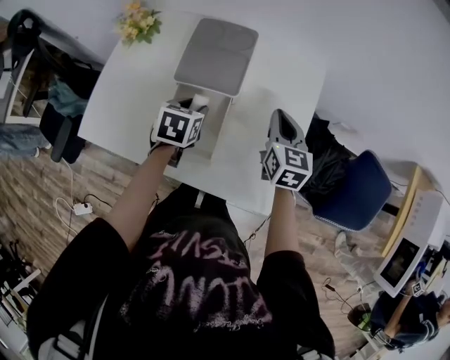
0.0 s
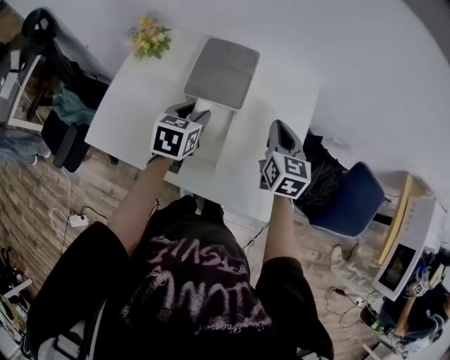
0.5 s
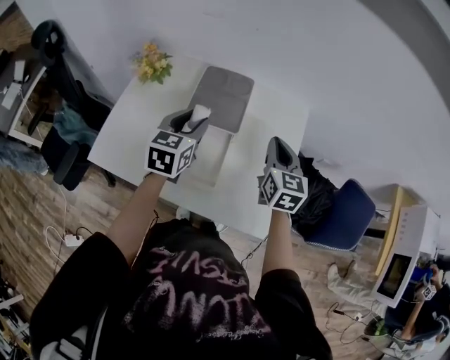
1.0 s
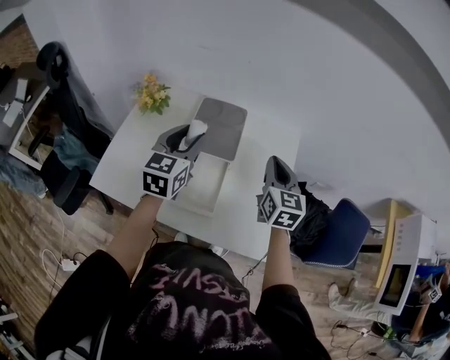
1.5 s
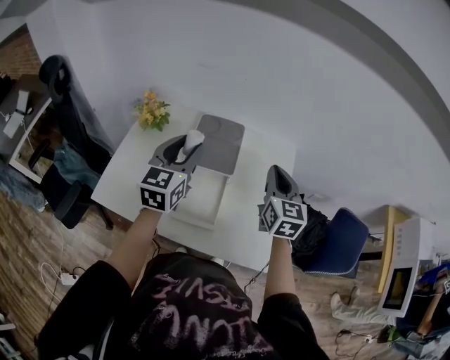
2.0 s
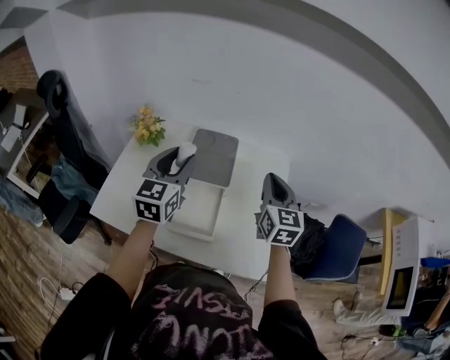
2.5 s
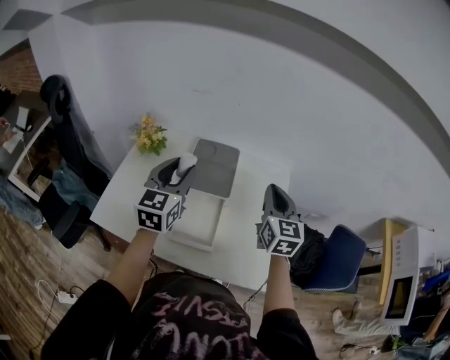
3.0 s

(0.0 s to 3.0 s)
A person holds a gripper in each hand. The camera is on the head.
0.0 s - 1.5 s: The left gripper shifts some 20 cm upward, and tips its fingers upward by approximately 40 degrees. Meanwhile the right gripper heads upward, covering some 10 cm.
1.5 s - 3.0 s: The grippers stay close to where they were, moving slightly.

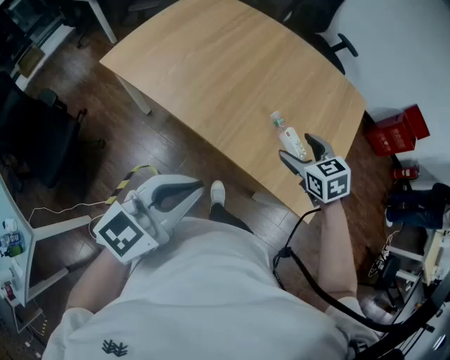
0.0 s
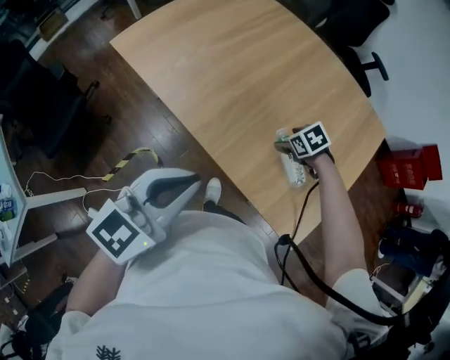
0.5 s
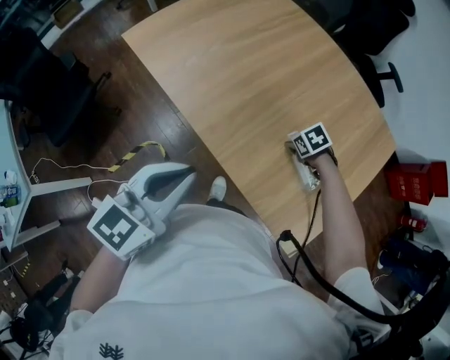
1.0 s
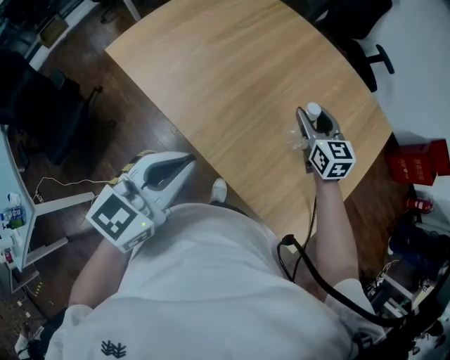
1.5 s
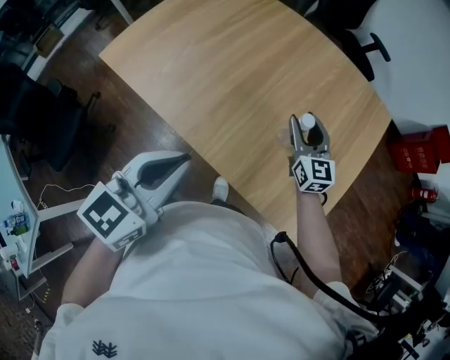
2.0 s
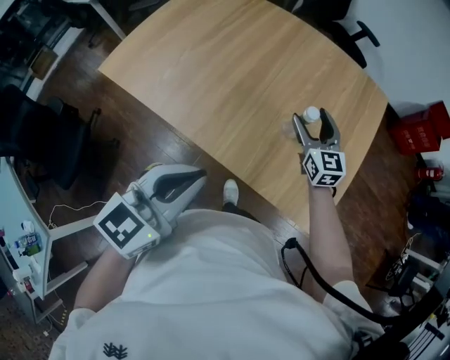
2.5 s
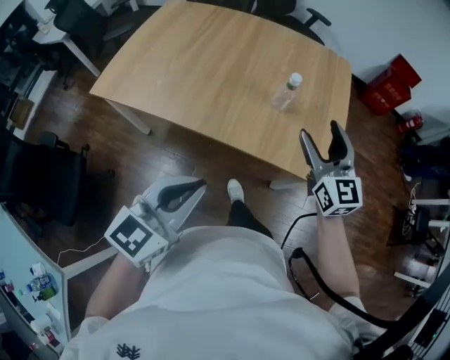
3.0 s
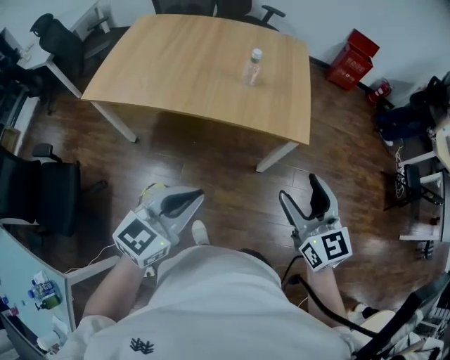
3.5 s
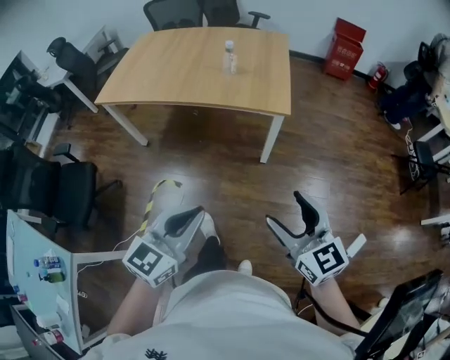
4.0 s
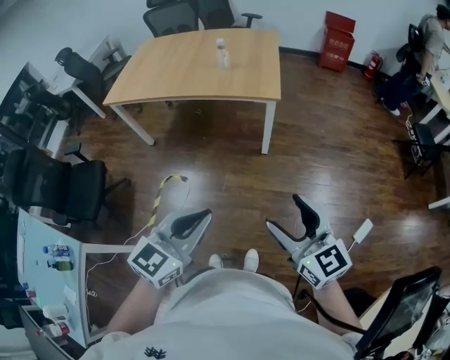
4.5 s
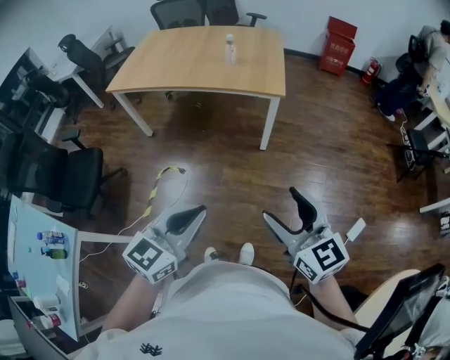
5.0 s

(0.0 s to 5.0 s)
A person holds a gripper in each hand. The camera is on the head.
0.0 s - 2.5 s: The right gripper moves some 20 cm downward and comes back, angles its fingers upward, by about 30 degrees, and closes, then reopens.
2.5 s - 5.0 s: The pair of grippers is taken backward, roughly 60 cm.

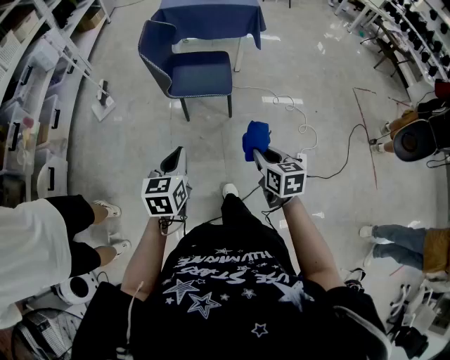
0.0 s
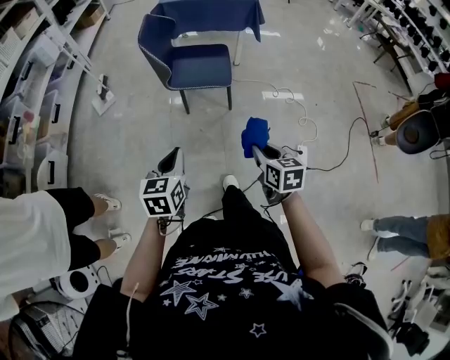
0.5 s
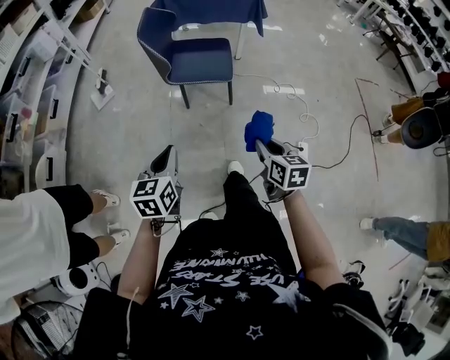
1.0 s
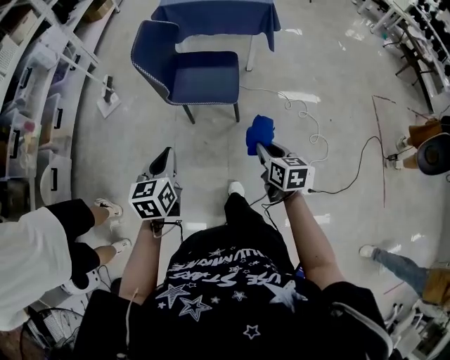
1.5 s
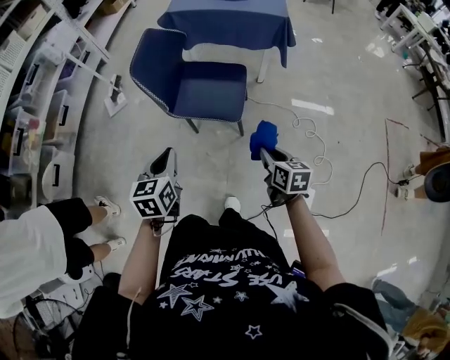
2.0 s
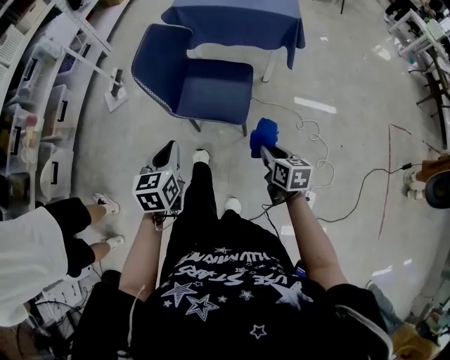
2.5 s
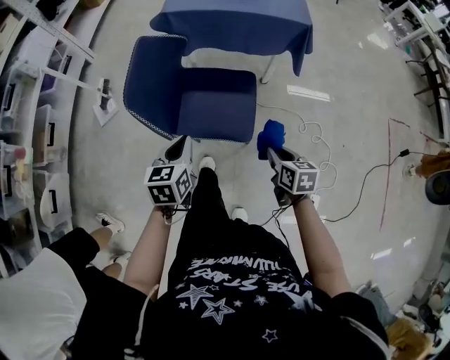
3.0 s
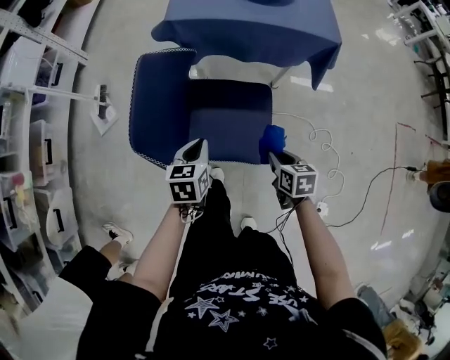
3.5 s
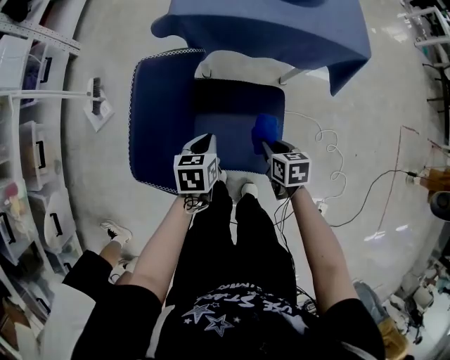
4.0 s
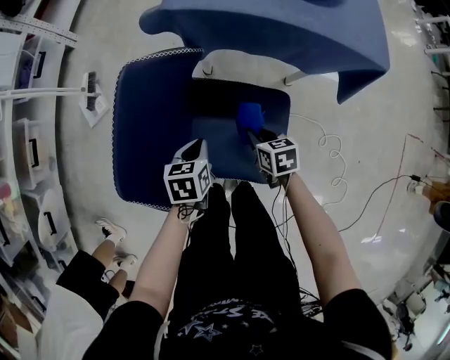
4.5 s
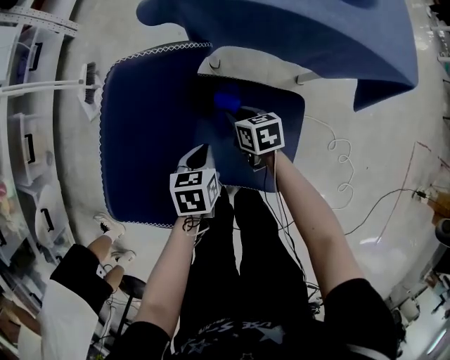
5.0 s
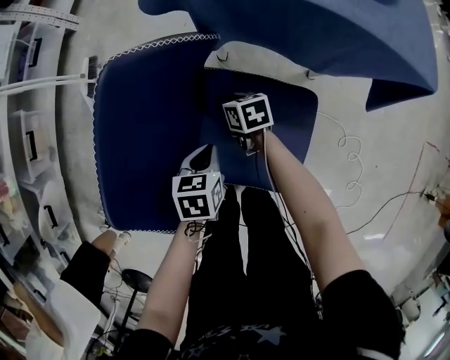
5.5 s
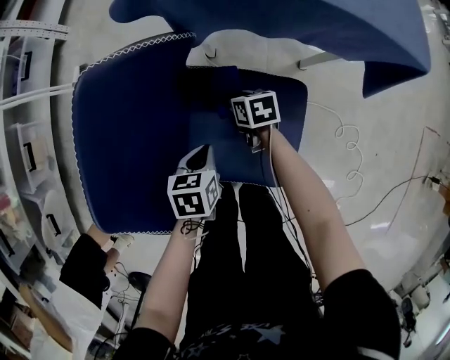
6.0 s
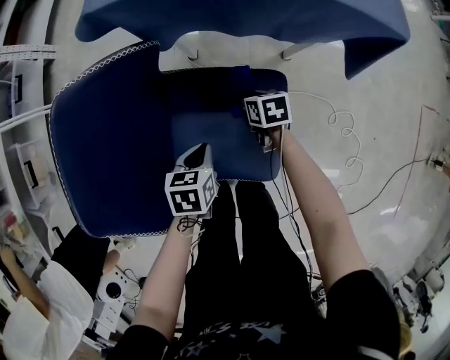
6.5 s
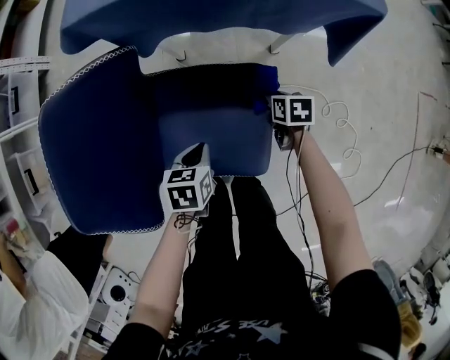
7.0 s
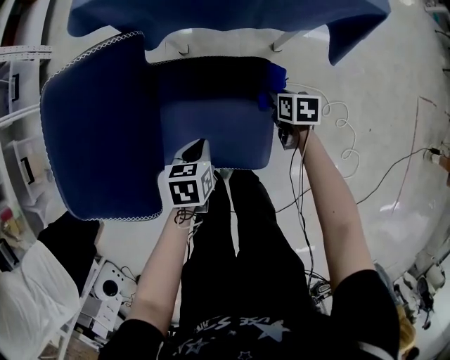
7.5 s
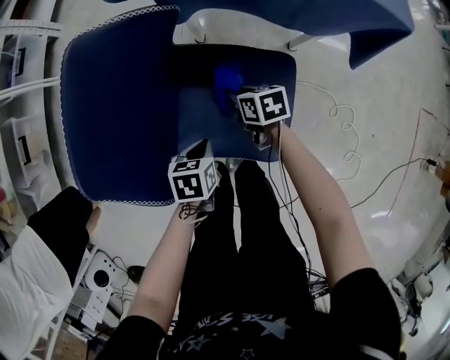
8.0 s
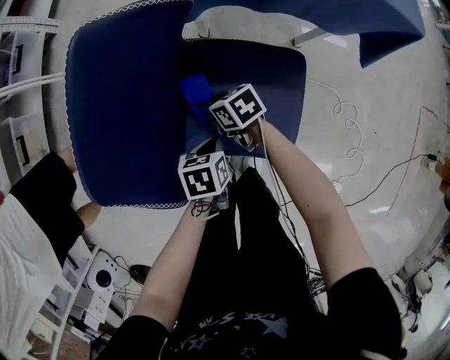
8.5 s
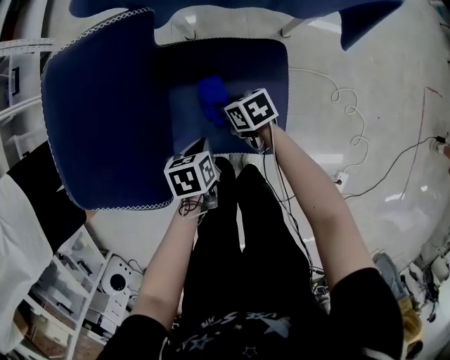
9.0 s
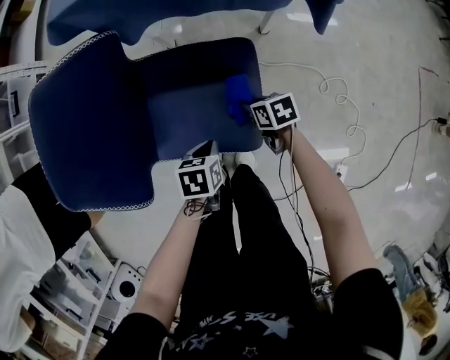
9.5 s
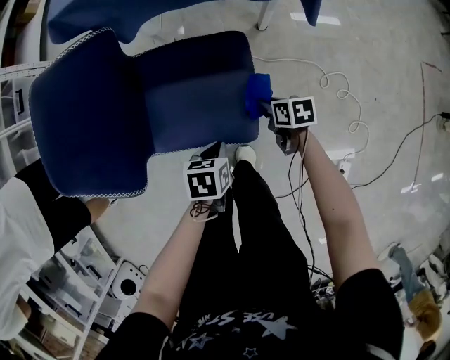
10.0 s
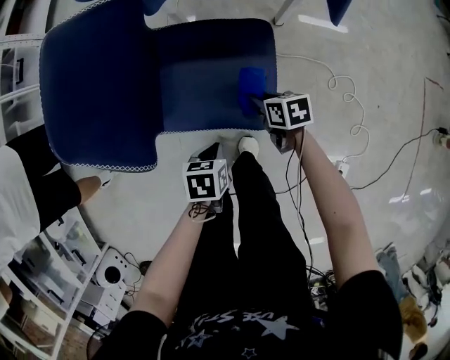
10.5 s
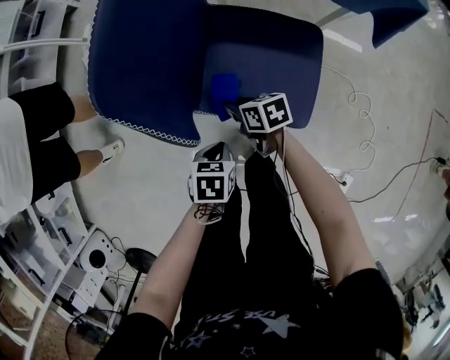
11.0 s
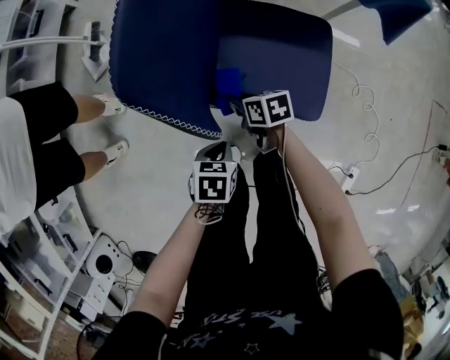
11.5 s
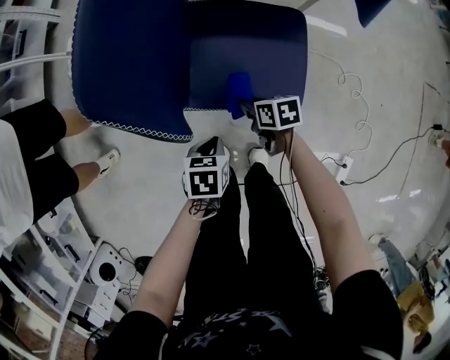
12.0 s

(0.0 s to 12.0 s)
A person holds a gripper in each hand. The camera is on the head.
0.0 s - 2.0 s: The left gripper heads forward, covering roughly 25 cm. The right gripper heads forward and to the right, covering about 30 cm.
2.0 s - 4.0 s: The two grippers travel together, forward, approximately 40 cm. Both grippers travel together downward, approximately 20 cm. The left gripper rotates about 30 degrees. The right gripper rotates approximately 20 degrees.
4.0 s - 6.0 s: The left gripper shifts approximately 10 cm downward, while the right gripper travels forward and downward by roughly 25 cm.
6.0 s - 8.0 s: The two grippers go about 10 cm backward. The right gripper moves about 25 cm to the right and comes back; the left gripper moves approximately 10 cm to the right and comes back.
8.0 s - 10.0 s: The right gripper goes approximately 25 cm to the right and backward, while the left gripper shifts approximately 15 cm to the right and backward.
10.0 s - 12.0 s: The two grippers go some 25 cm to the left.

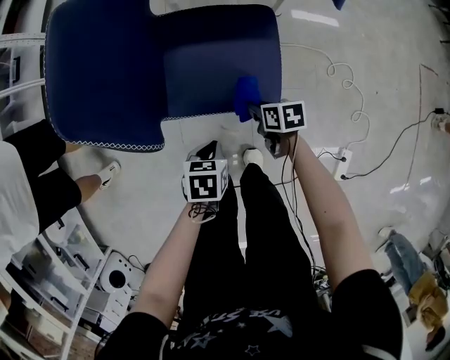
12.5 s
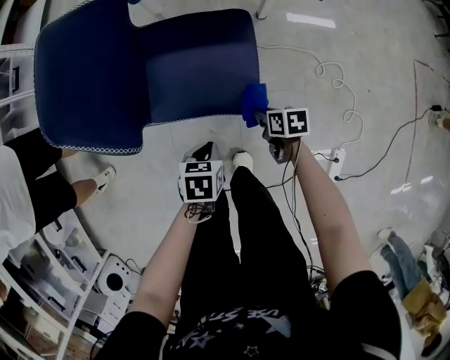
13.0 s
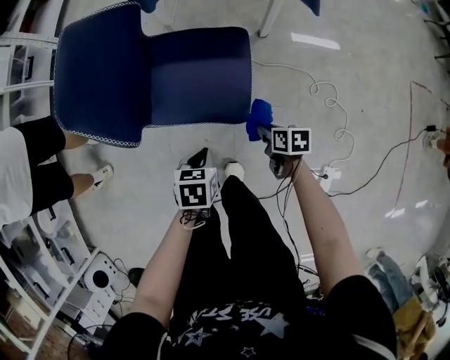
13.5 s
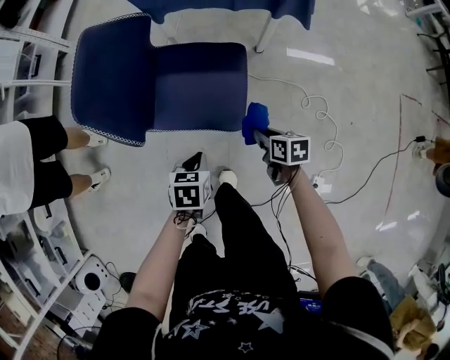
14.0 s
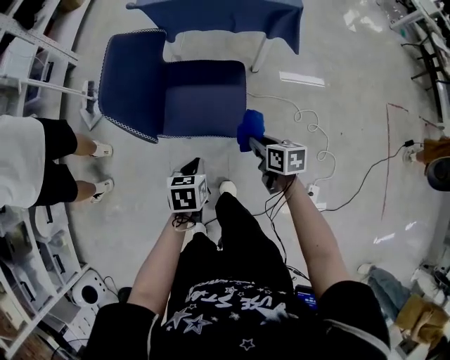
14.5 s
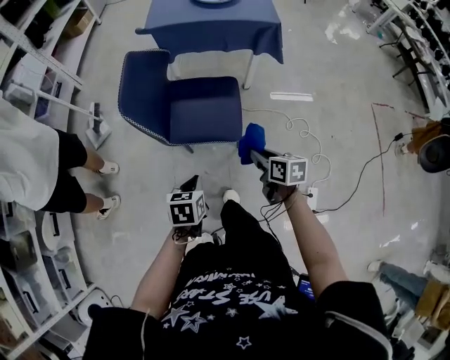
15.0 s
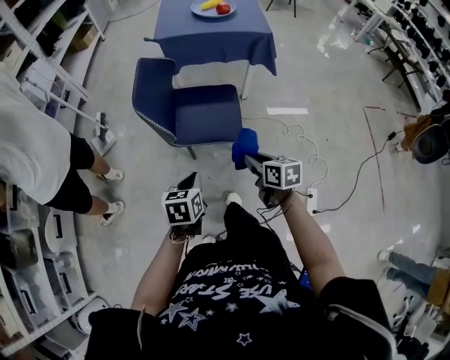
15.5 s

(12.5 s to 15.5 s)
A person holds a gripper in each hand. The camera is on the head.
12.5 s - 14.0 s: Both grippers move upward and to the right, roughly 15 cm.
14.0 s - 15.5 s: Both grippers travel together upward, backward and to the left, approximately 30 cm.

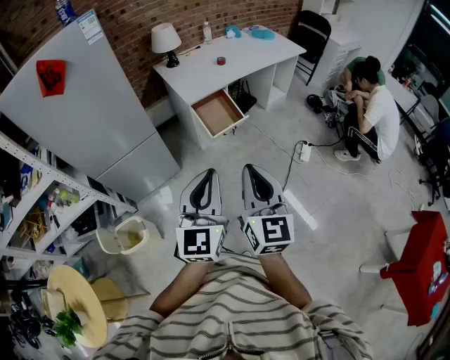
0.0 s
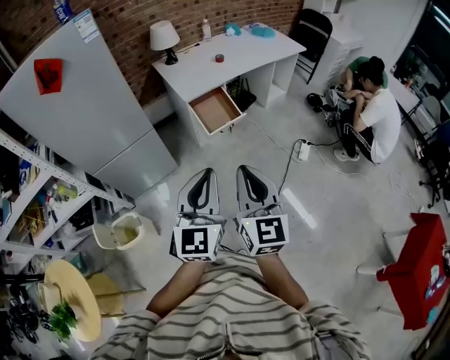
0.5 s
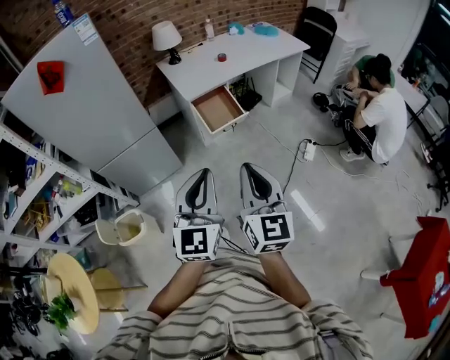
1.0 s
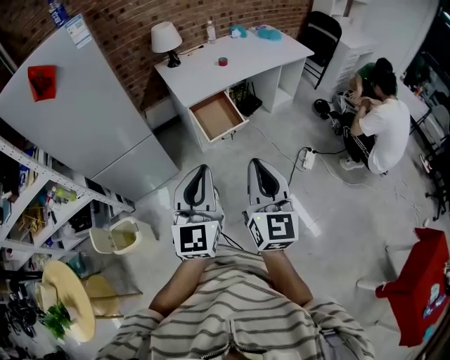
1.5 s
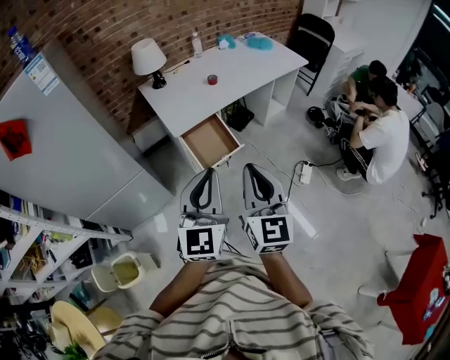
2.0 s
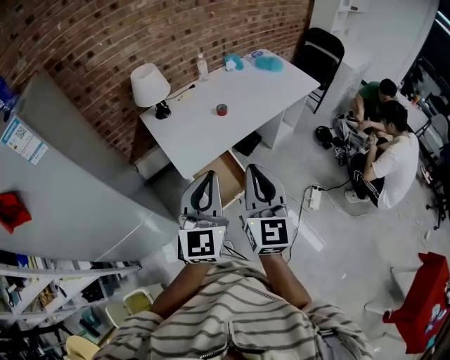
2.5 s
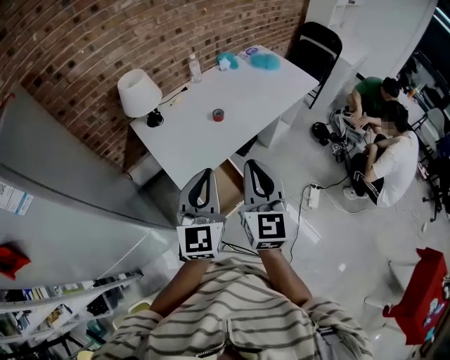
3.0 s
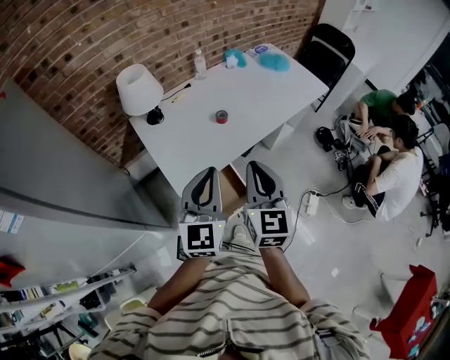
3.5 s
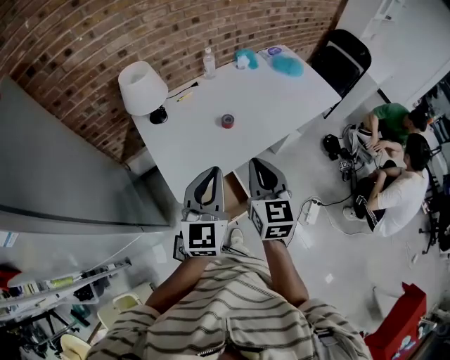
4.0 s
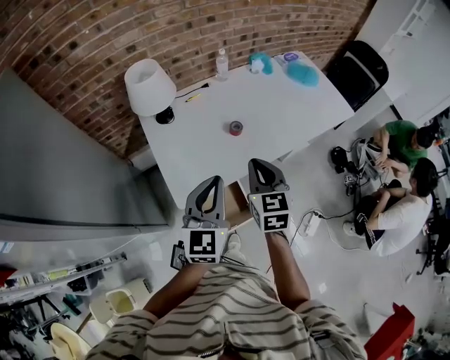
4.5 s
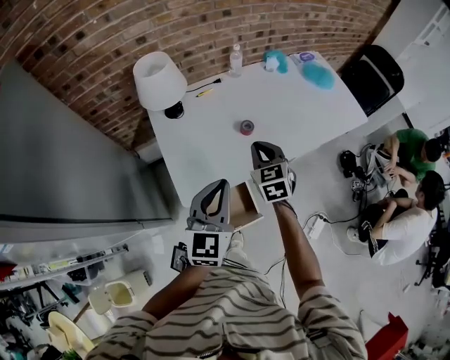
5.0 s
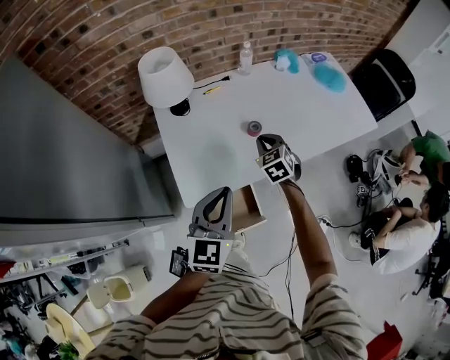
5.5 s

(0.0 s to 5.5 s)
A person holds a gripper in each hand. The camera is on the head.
0.0 s - 2.0 s: The grippers both shift forward by approximately 25 cm.
2.0 s - 3.5 s: The grippers both shift forward by about 40 cm.
3.5 s - 5.5 s: The left gripper goes some 15 cm forward and downward. Meanwhile the right gripper moves forward and downward, about 40 cm, and points its fingers approximately 30 degrees further downward.
